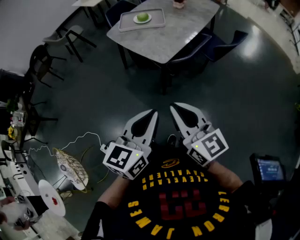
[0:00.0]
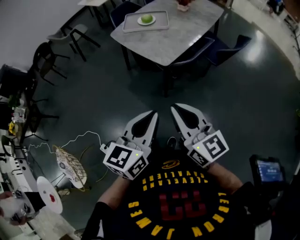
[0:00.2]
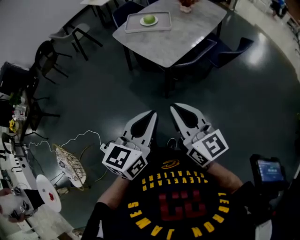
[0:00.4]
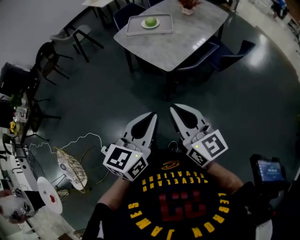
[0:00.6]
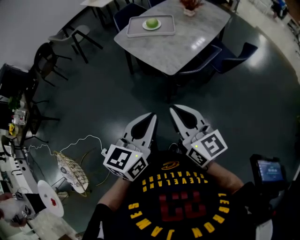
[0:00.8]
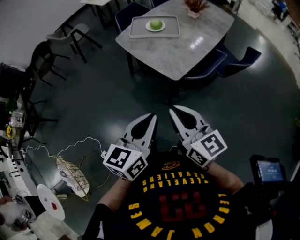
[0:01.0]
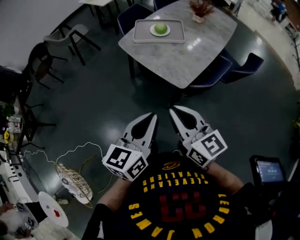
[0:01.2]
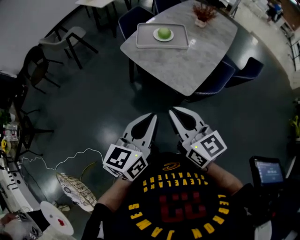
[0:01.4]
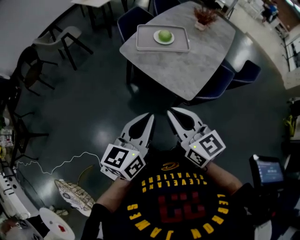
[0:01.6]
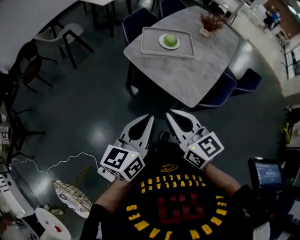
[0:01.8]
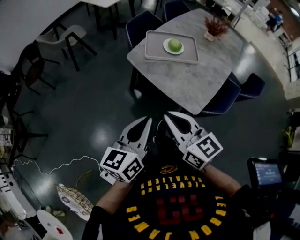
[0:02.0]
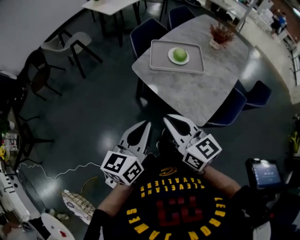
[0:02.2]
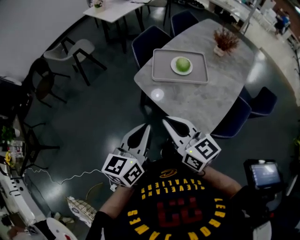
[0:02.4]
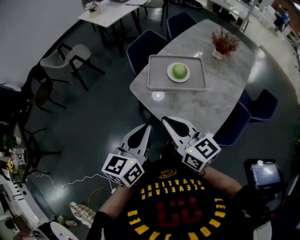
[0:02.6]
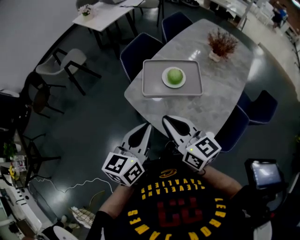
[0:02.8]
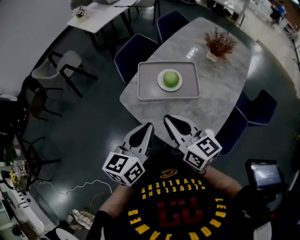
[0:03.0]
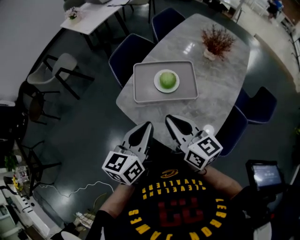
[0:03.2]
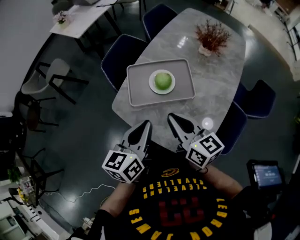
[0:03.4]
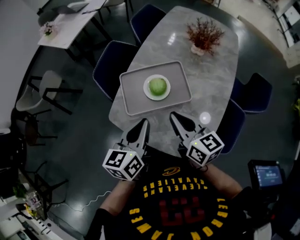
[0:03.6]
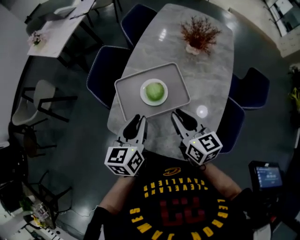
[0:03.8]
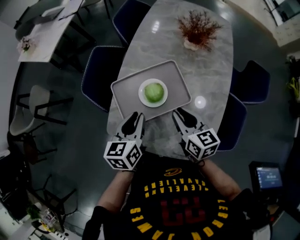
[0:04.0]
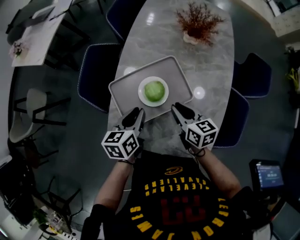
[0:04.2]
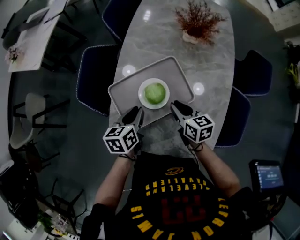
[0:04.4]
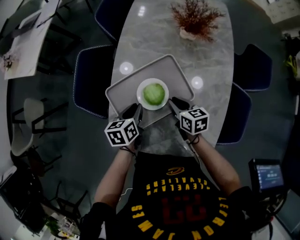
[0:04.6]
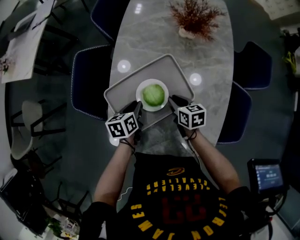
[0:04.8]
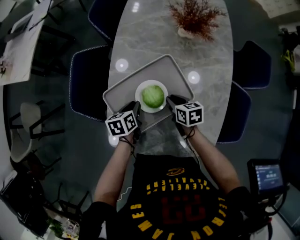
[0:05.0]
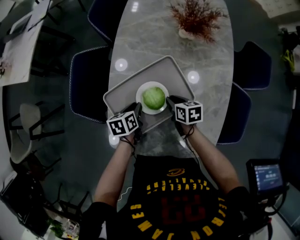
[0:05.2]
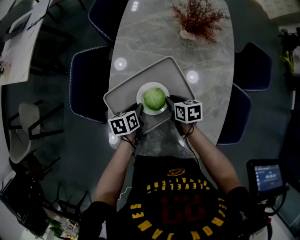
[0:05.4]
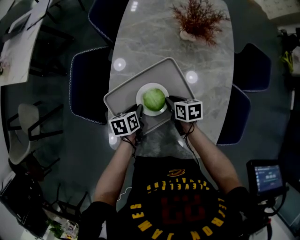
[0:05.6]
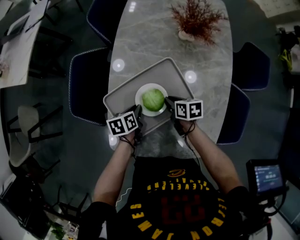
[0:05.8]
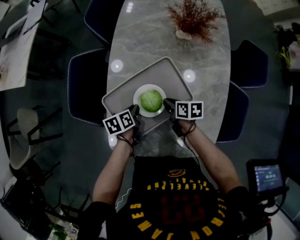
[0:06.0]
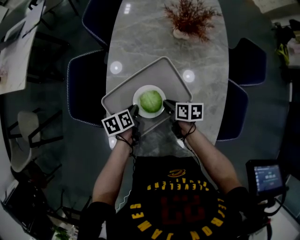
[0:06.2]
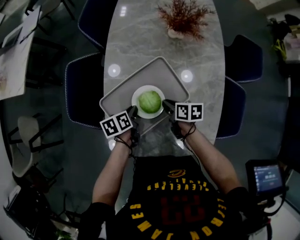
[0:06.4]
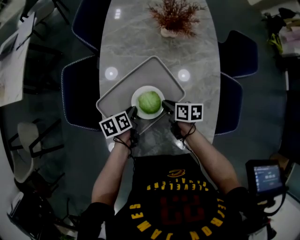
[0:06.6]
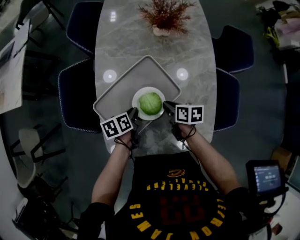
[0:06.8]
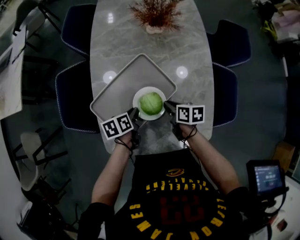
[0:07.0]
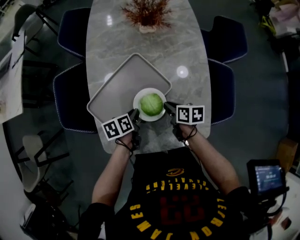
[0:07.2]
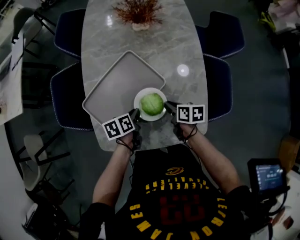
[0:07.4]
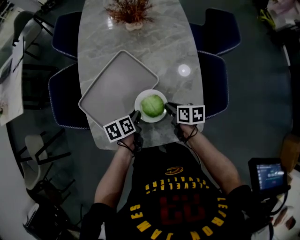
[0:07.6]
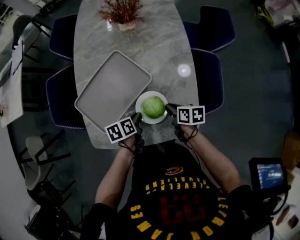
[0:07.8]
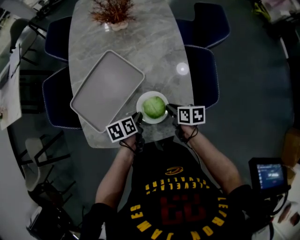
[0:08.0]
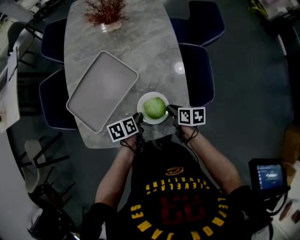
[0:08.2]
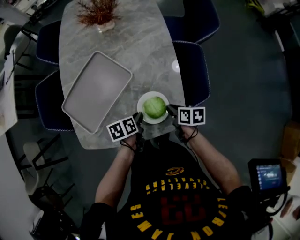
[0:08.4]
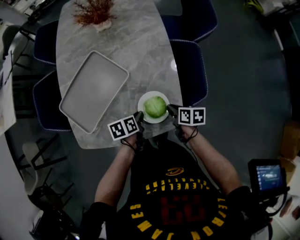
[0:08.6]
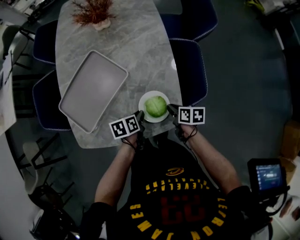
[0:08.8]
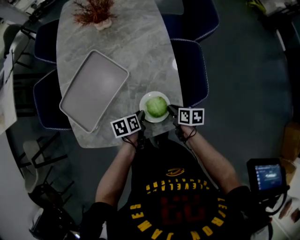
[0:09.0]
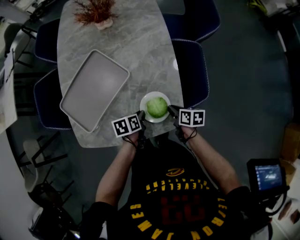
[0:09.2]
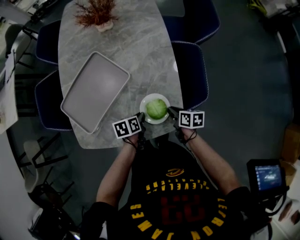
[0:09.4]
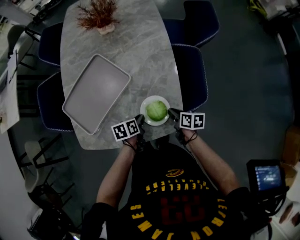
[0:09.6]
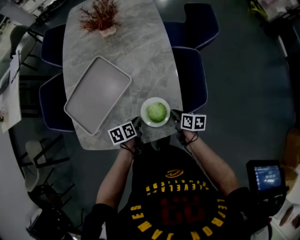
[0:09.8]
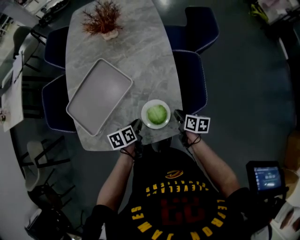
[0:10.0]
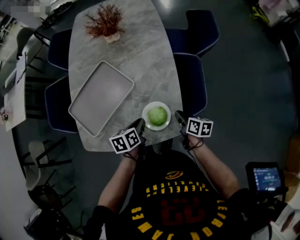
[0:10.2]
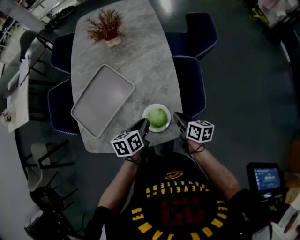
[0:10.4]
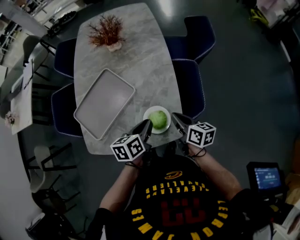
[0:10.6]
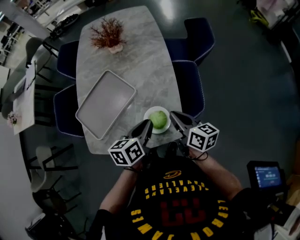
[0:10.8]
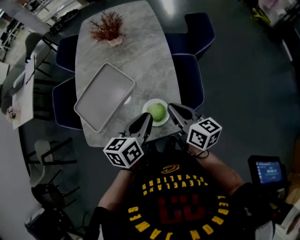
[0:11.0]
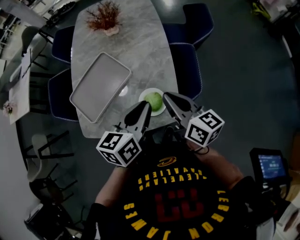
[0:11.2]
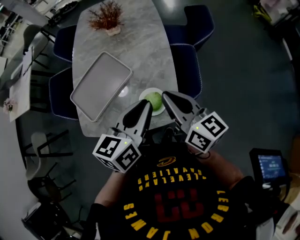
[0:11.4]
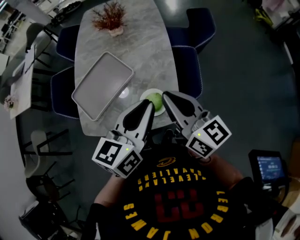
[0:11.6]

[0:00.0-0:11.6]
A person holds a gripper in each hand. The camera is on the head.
0:00.0 to 0:01.4: Both grippers travel together forward and to the left, some 25 cm.
0:01.4 to 0:02.8: Both grippers travel together forward, about 30 cm.
0:02.8 to 0:04.4: The right gripper shifts by roughly 35 cm, and rotates roughly 40 degrees; the left gripper ends up roughly 35 cm from where it was, and swivels some 40 degrees.
0:04.4 to 0:05.8: Both grippers move downward, roughly 10 cm. The right gripper changes its angle by approximately 20 degrees.
0:05.8 to 0:07.2: The right gripper is displaced to the right and backward by roughly 10 cm, and rotates approximately 20 degrees. The left gripper shifts some 5 cm to the right.
0:07.2 to 0:08.8: Both grippers travel together to the right and backward, roughly 20 cm.
0:08.8 to 0:10.2: The left gripper moves upward, about 5 cm.
0:10.2 to 0:11.6: Both grippers travel together upward, approximately 30 cm. The right gripper tilts its fingers about 40 degrees upward. Meanwhile the left gripper tilts its fingers roughly 30 degrees upward.

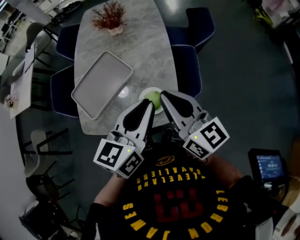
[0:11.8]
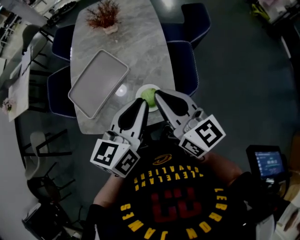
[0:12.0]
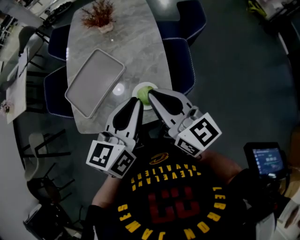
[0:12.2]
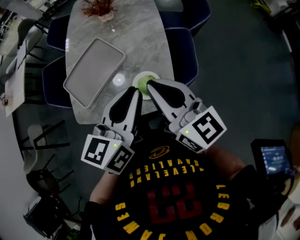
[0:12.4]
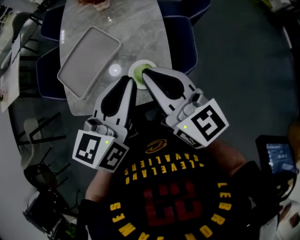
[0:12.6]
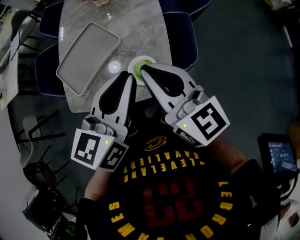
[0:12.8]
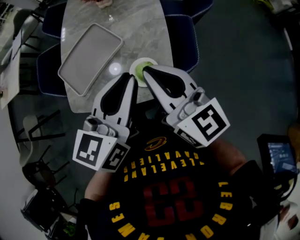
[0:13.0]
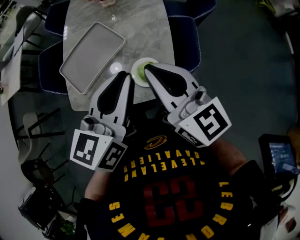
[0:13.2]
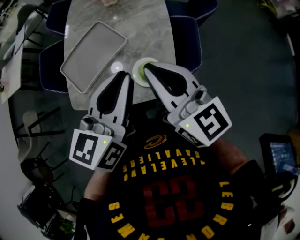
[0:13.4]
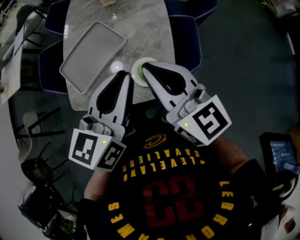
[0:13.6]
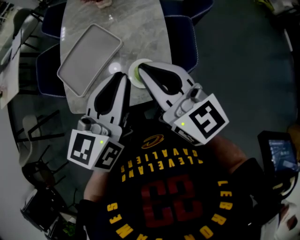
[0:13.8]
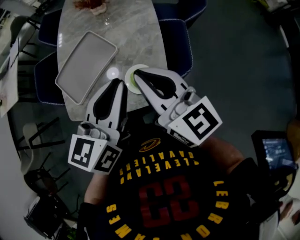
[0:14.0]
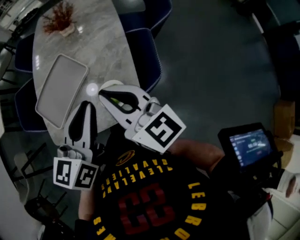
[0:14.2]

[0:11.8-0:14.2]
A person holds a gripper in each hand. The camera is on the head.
0:11.8 to 0:14.2: The grippers move only a little.

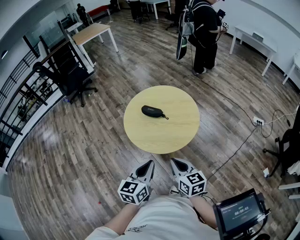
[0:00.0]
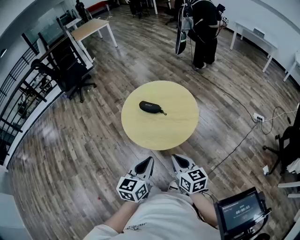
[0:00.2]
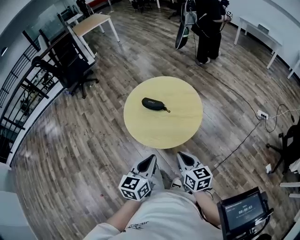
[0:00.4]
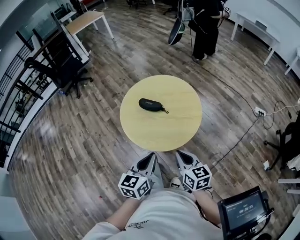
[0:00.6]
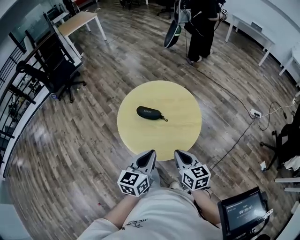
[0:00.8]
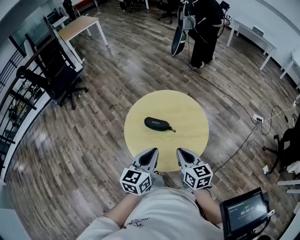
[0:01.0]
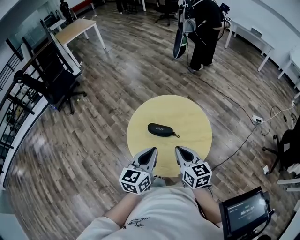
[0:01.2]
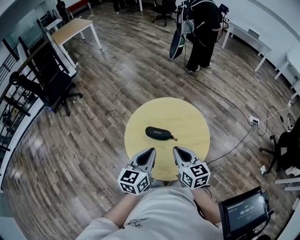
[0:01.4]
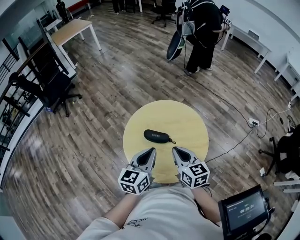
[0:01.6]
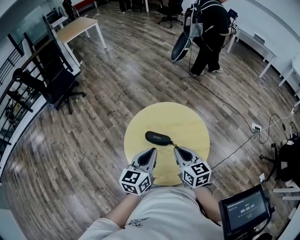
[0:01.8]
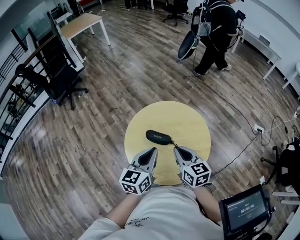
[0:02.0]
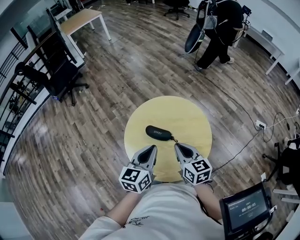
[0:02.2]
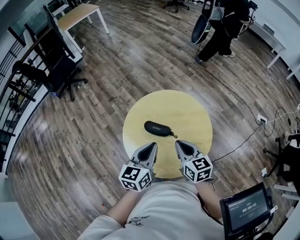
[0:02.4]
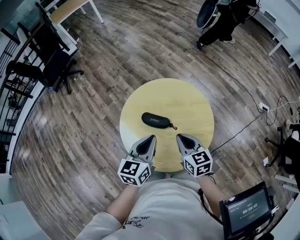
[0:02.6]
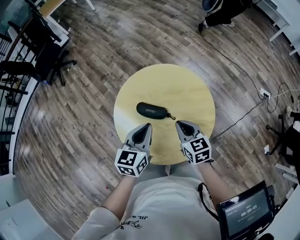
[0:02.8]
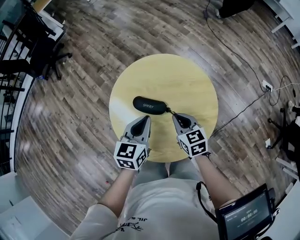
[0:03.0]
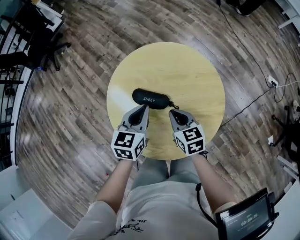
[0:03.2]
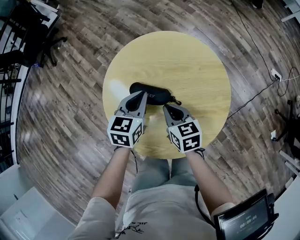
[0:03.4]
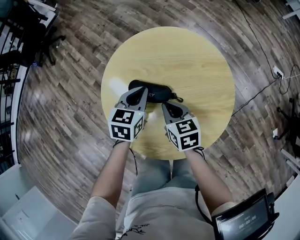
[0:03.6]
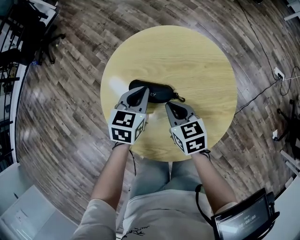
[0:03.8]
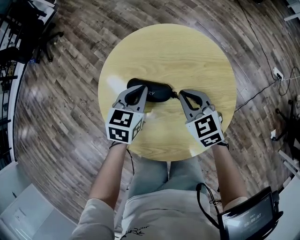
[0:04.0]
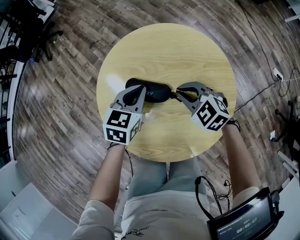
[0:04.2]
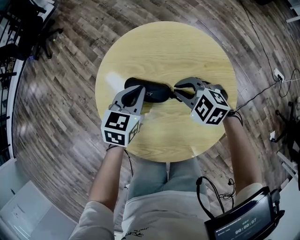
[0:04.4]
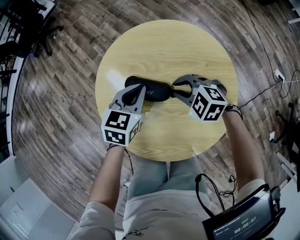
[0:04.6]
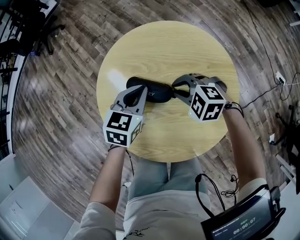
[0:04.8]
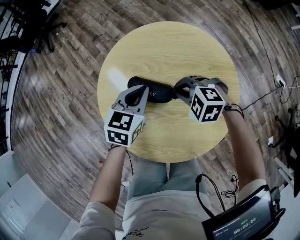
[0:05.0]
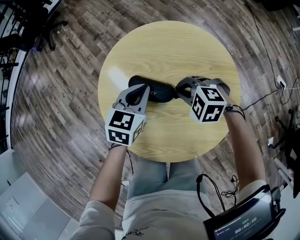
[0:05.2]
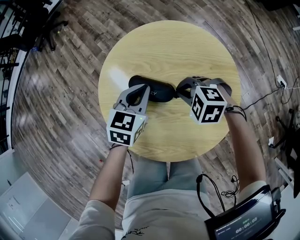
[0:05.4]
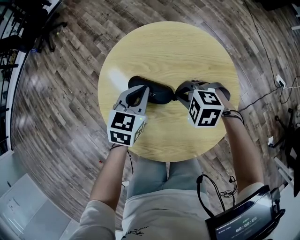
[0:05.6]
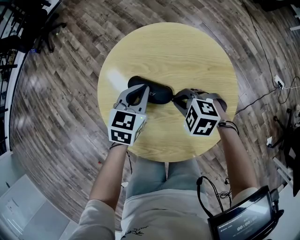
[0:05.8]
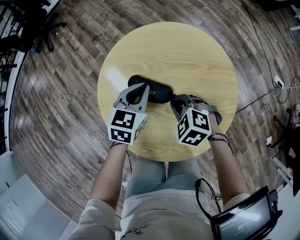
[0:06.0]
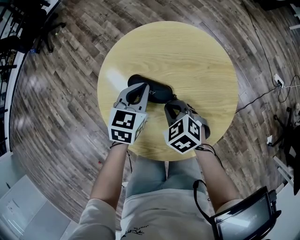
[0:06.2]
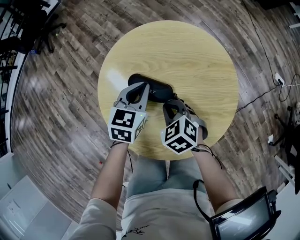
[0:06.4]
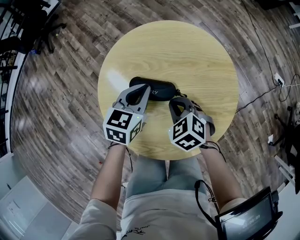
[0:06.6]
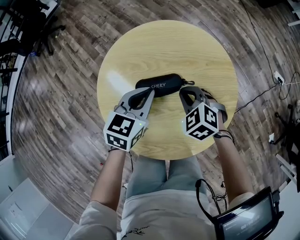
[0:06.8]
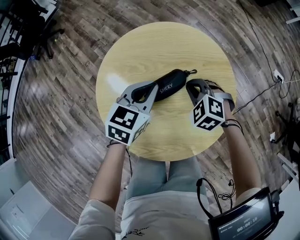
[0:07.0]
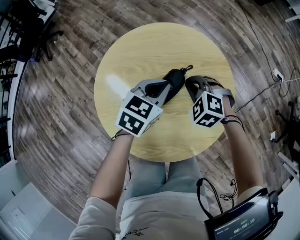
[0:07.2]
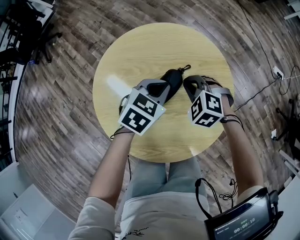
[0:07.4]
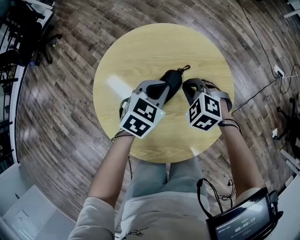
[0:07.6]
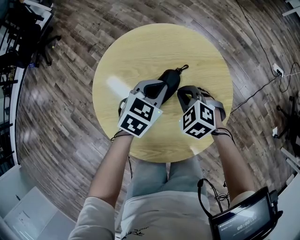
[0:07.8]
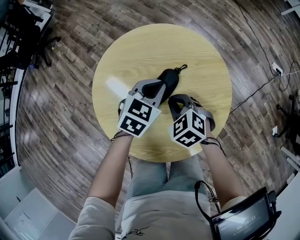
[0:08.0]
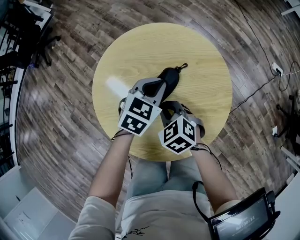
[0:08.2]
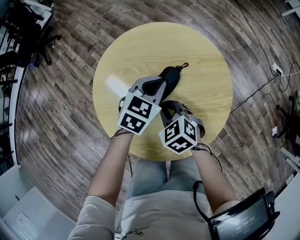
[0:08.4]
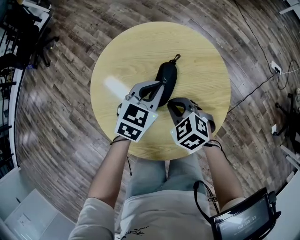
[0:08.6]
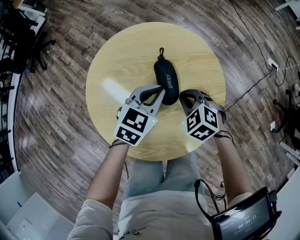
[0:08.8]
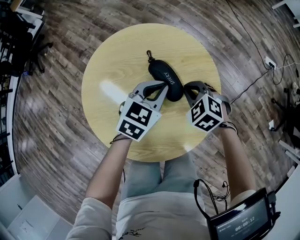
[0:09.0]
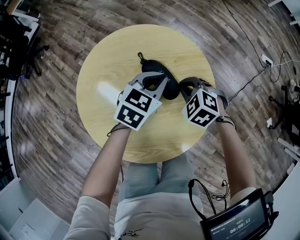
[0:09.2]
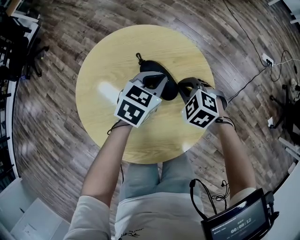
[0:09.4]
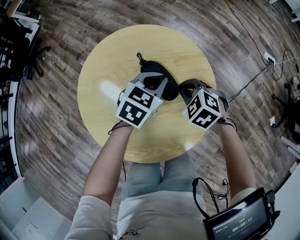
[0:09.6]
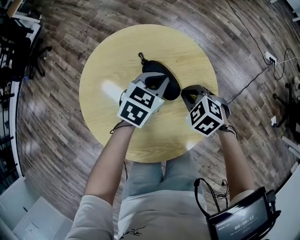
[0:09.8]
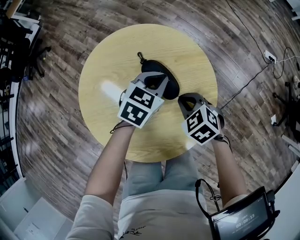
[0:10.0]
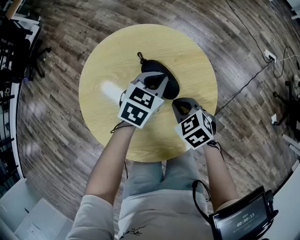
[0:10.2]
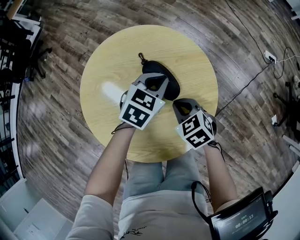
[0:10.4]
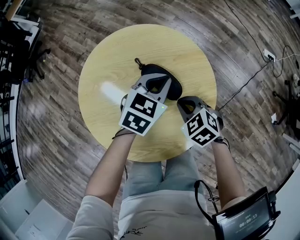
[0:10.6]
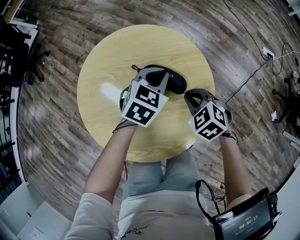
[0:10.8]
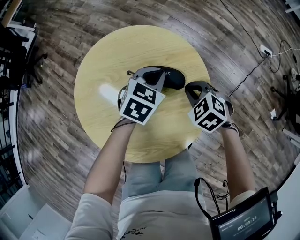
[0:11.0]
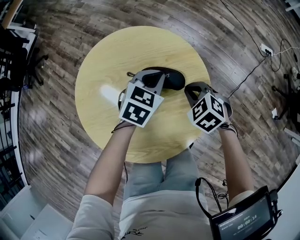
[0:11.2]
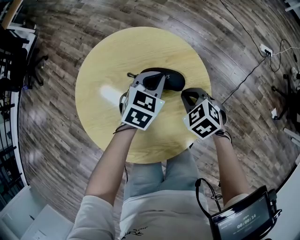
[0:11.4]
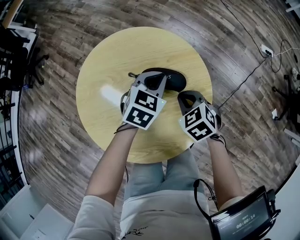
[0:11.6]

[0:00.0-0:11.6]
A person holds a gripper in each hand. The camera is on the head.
0:00.0 to 0:01.4: Both grippers travel together forward, approximately 30 cm.
0:01.4 to 0:02.8: The right gripper shifts approximately 15 cm downward, forward and to the right. Meanwhile the left gripper heads downward and forward, covering approximately 10 cm.
0:02.8 to 0:04.4: The grippers both shift downward and forward by approximately 20 cm. The right gripper changes its angle by approximately 60 degrees.
0:04.4 to 0:05.8: The grippers move only a little.
0:05.8 to 0:07.2: The right gripper shifts by roughly 10 cm, and swivels roughly 20 degrees; the left gripper ends up some 10 cm from where it was, and rotates approximately 20 degrees.
0:07.2 to 0:08.8: The right gripper heads backward, covering approximately 5 cm, and moves some 10 cm to the left and comes back.
0:08.8 to 0:10.2: The left gripper travels to the right by roughly 5 cm; the right gripper rotates roughly 20 degrees.
